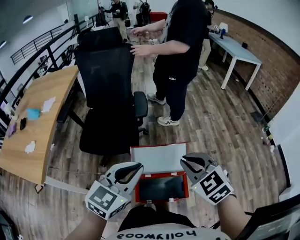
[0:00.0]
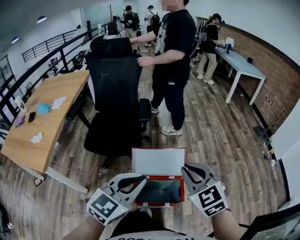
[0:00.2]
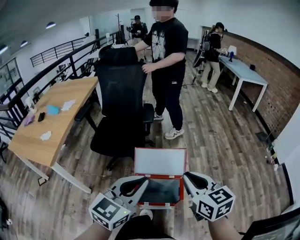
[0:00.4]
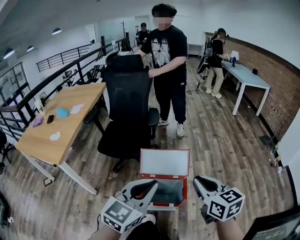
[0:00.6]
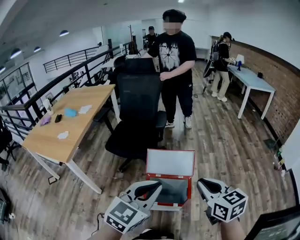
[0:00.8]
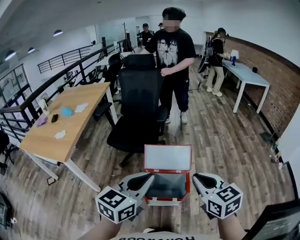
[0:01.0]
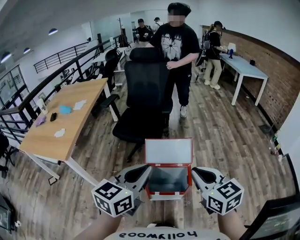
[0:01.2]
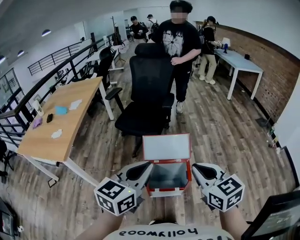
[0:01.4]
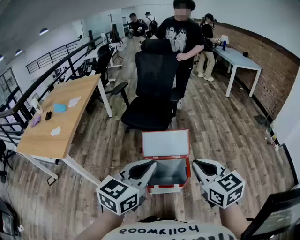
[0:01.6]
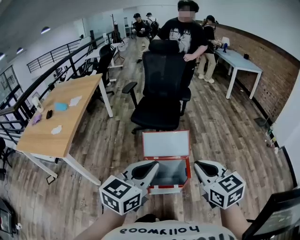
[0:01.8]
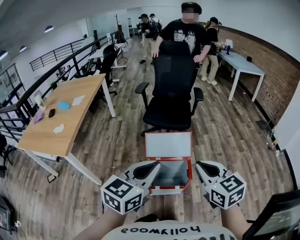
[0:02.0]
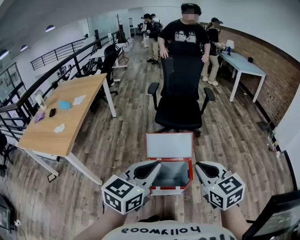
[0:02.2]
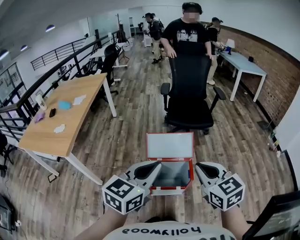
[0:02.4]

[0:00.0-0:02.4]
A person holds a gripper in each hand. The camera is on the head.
0:00.0 to 0:01.2: Both grippers travel together backward, about 20 cm. The right gripper changes its angle by some 30 degrees.
0:01.2 to 0:02.4: There are only small adjustments of the grippers.

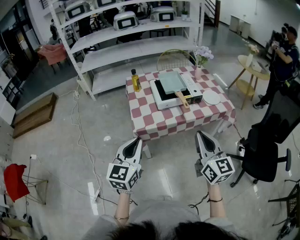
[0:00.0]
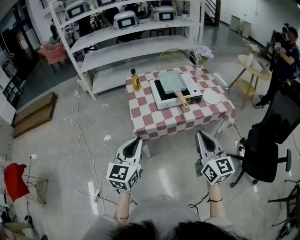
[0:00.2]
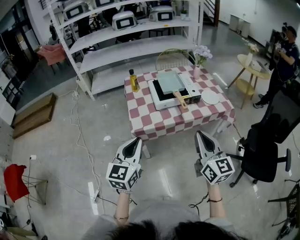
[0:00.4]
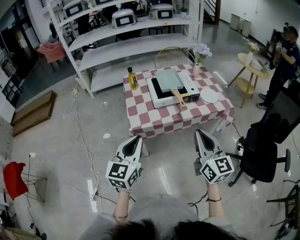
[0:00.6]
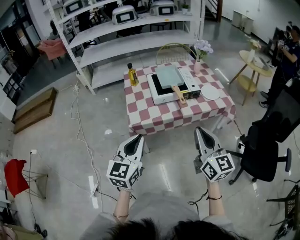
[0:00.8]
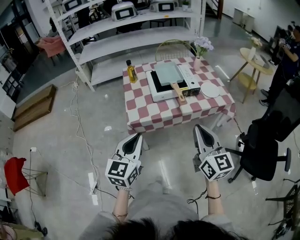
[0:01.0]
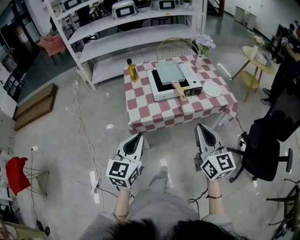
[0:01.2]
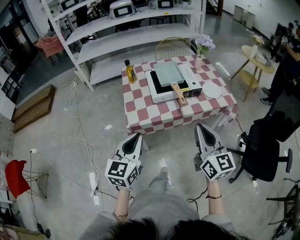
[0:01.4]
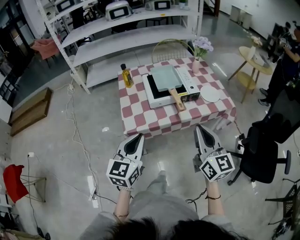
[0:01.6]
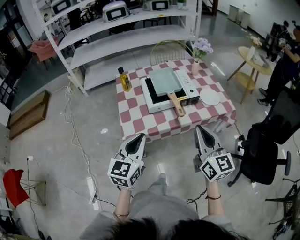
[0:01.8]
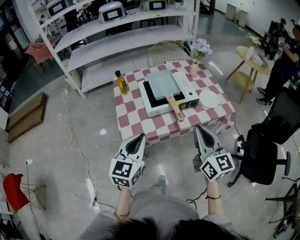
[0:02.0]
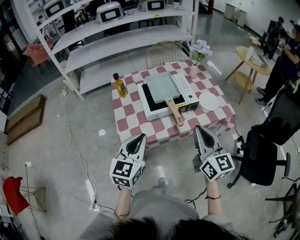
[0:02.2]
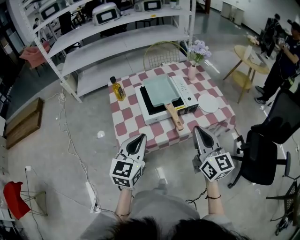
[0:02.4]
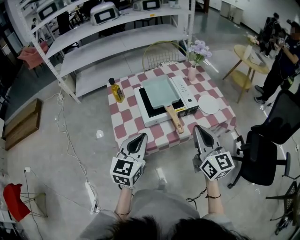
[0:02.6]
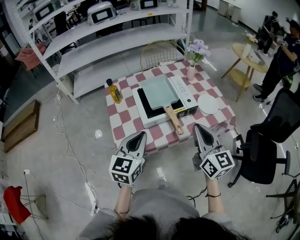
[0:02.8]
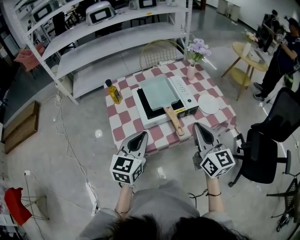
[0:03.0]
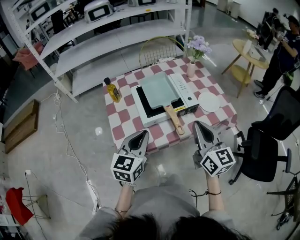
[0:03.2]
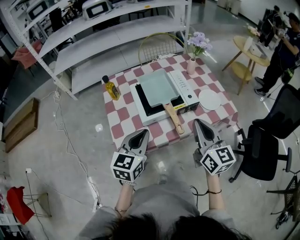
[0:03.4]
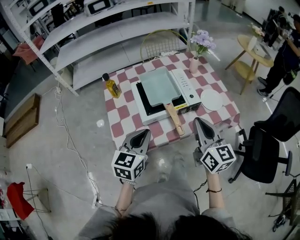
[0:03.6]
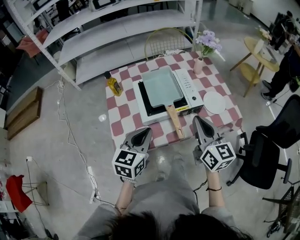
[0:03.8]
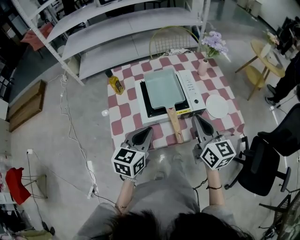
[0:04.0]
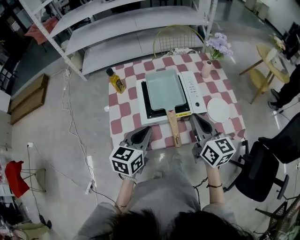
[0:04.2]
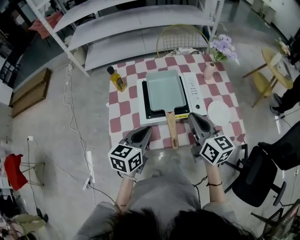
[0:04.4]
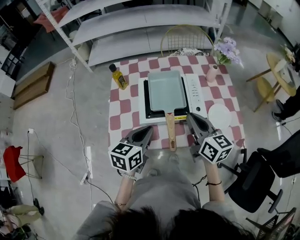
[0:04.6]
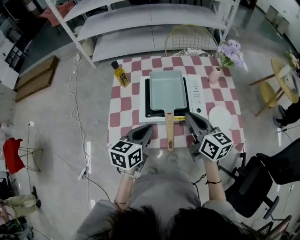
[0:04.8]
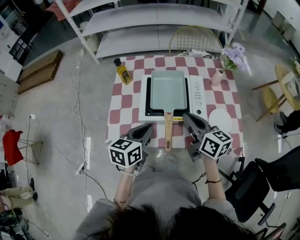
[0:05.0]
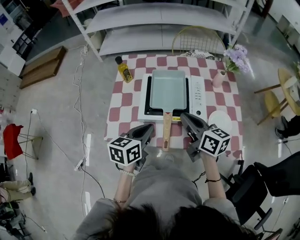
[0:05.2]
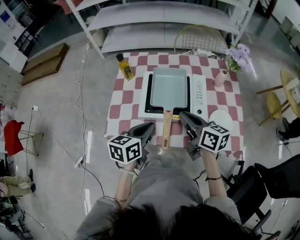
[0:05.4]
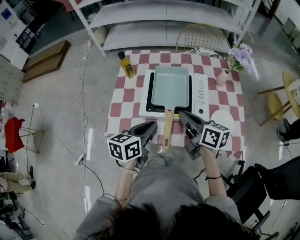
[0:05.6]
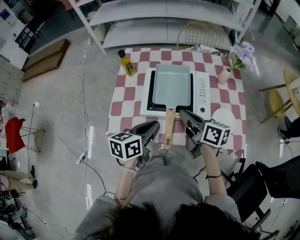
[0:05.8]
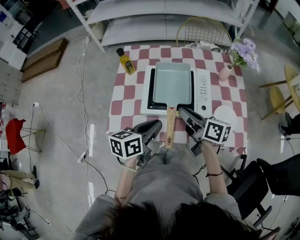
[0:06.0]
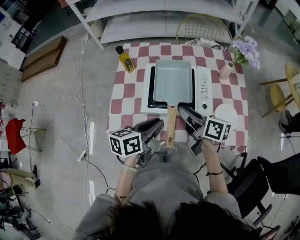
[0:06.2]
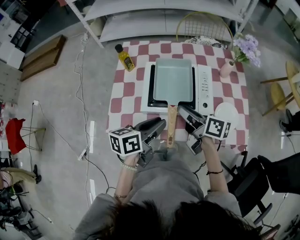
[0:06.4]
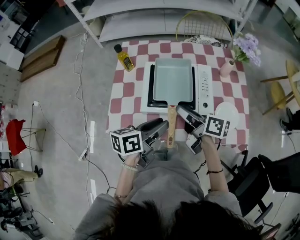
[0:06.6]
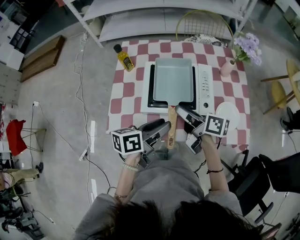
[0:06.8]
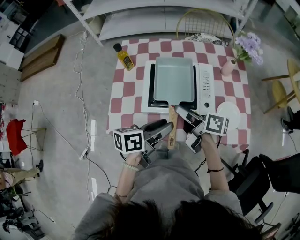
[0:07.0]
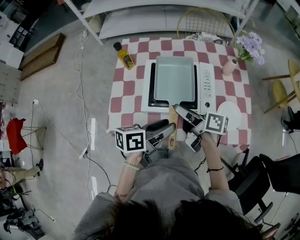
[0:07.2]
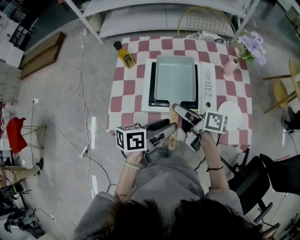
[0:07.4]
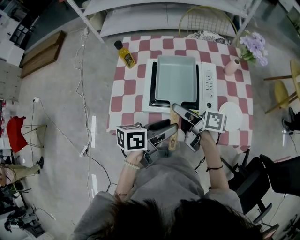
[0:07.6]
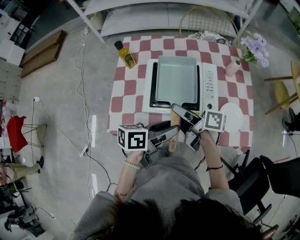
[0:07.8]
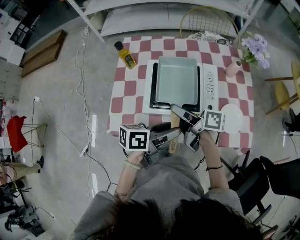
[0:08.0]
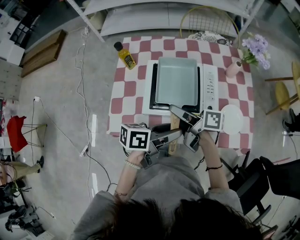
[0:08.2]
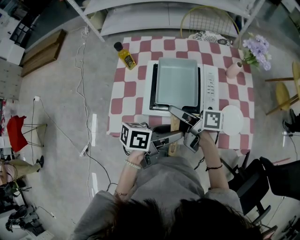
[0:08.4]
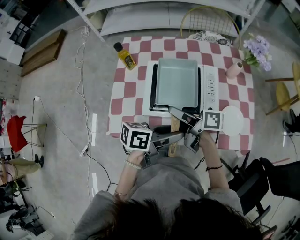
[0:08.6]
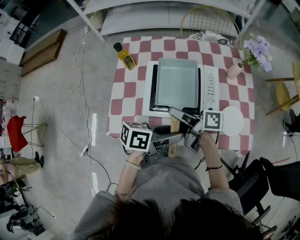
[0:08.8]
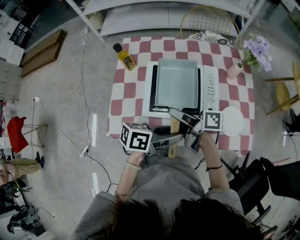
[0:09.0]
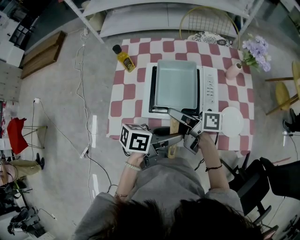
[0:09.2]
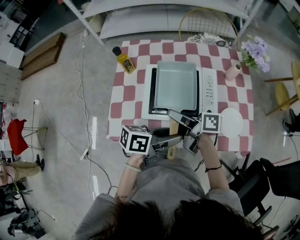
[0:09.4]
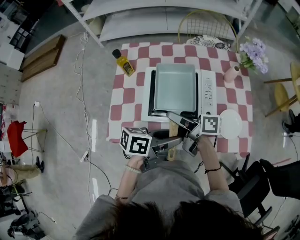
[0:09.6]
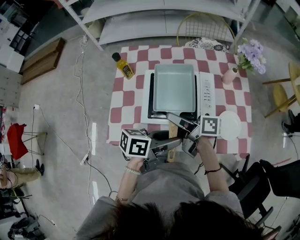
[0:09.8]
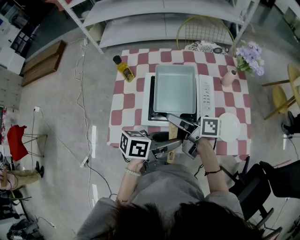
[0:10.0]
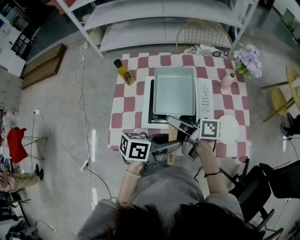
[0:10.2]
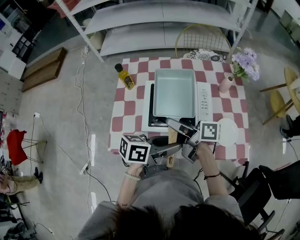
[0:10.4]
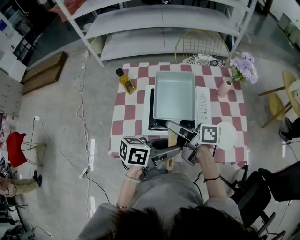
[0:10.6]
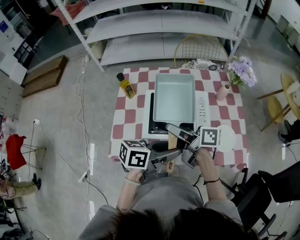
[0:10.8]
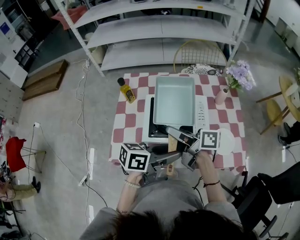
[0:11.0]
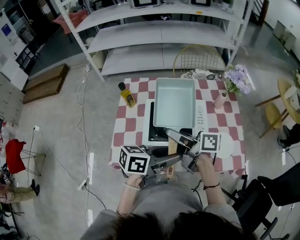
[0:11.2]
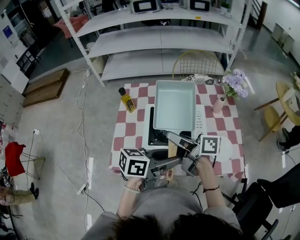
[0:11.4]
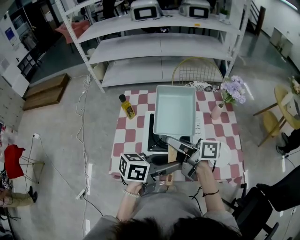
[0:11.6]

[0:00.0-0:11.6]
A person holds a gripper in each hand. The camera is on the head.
0:00.0 to 0:01.4: The left gripper ends up about 5 cm from where it was, while the right gripper ends up about 5 cm from where it was.
0:01.4 to 0:02.8: Both grippers move forward, about 20 cm.
0:02.8 to 0:04.4: The right gripper shifts roughly 15 cm forward, and turns by about 20 degrees; the left gripper moves forward and downward, about 10 cm, and changes its angle by roughly 20 degrees.
0:04.4 to 0:05.8: The right gripper heads downward, covering approximately 5 cm, and changes its angle by roughly 40 degrees.
0:05.8 to 0:07.2: The right gripper swivels approximately 20 degrees, and opens up. The left gripper swivels about 20 degrees, and opens up.
0:07.2 to 0:10.2: The grippers stay close to where they were, moving slightly.
0:10.2 to 0:11.6: The two grippers go some 10 cm upward.

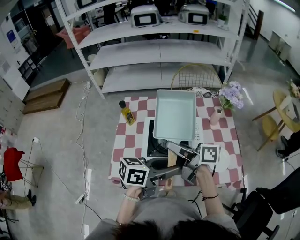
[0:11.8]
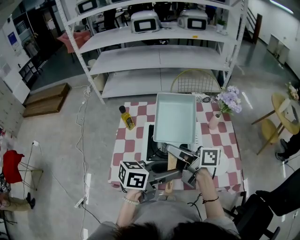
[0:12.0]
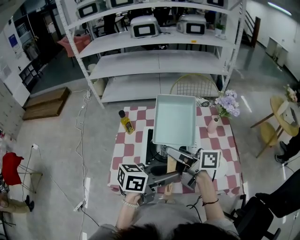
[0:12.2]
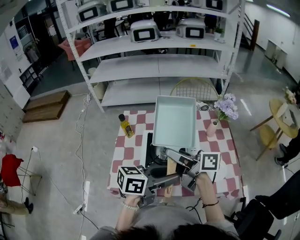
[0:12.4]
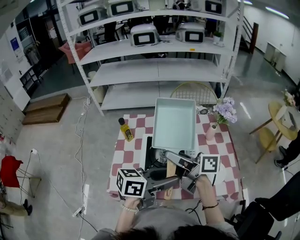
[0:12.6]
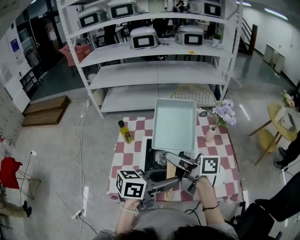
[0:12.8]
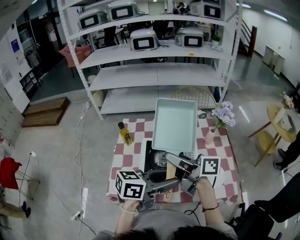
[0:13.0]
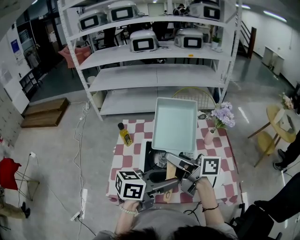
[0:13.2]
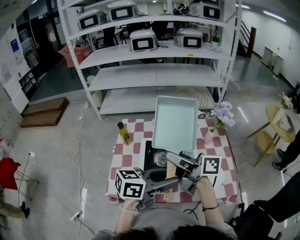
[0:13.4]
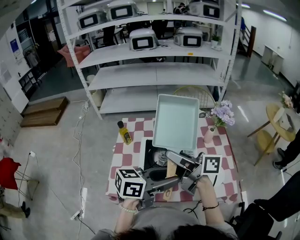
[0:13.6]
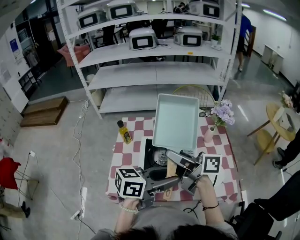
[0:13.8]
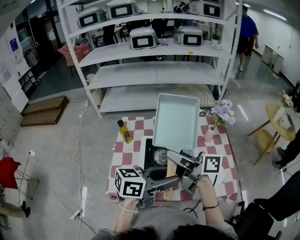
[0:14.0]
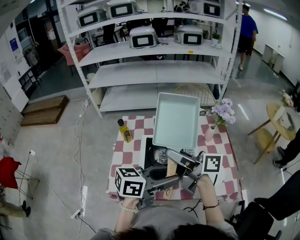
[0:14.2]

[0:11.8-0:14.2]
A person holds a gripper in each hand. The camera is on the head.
0:11.8 to 0:13.0: Both grippers travel together upward, some 5 cm.
0:13.0 to 0:14.2: Both grippers stay put.

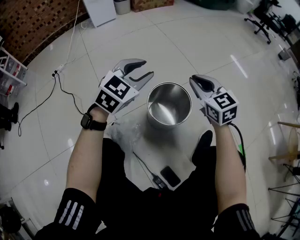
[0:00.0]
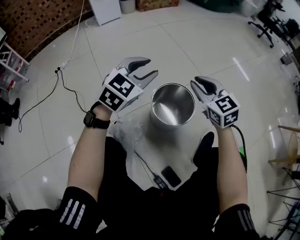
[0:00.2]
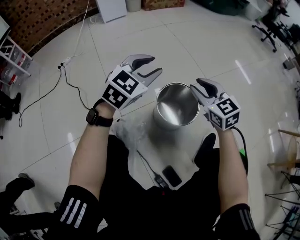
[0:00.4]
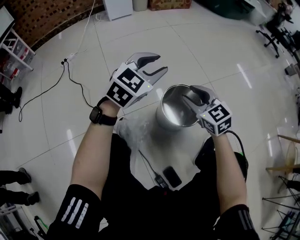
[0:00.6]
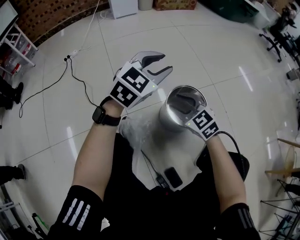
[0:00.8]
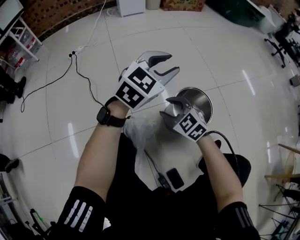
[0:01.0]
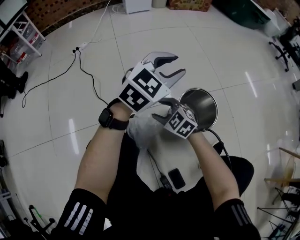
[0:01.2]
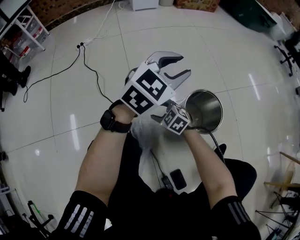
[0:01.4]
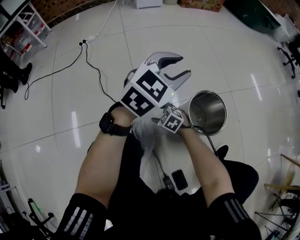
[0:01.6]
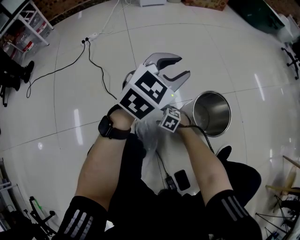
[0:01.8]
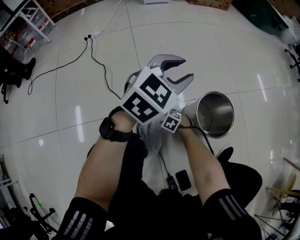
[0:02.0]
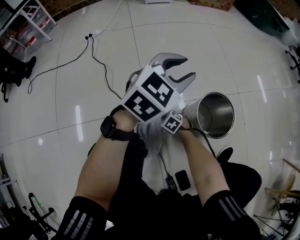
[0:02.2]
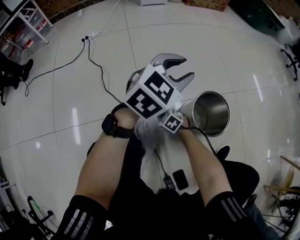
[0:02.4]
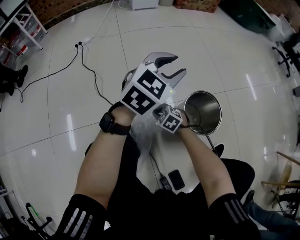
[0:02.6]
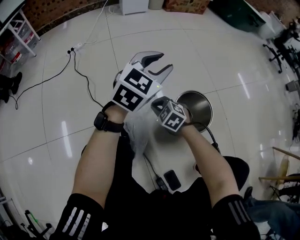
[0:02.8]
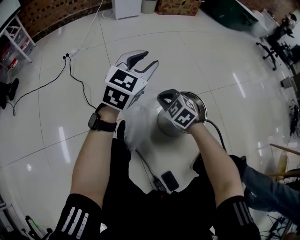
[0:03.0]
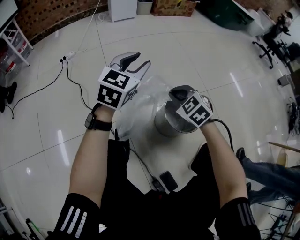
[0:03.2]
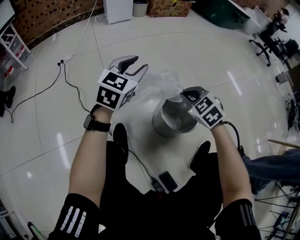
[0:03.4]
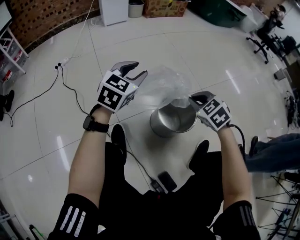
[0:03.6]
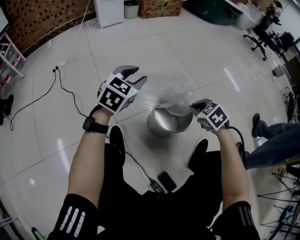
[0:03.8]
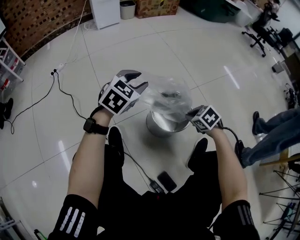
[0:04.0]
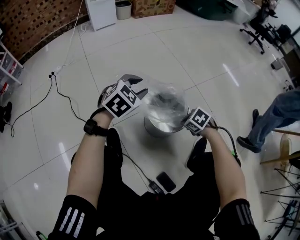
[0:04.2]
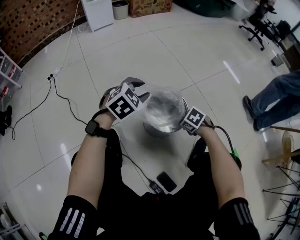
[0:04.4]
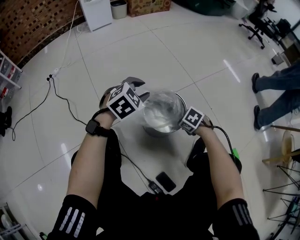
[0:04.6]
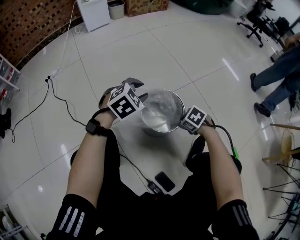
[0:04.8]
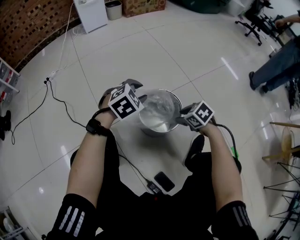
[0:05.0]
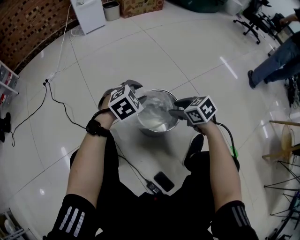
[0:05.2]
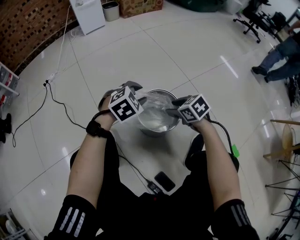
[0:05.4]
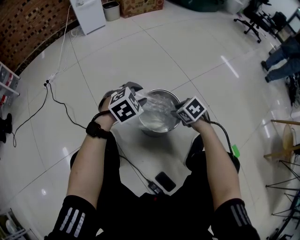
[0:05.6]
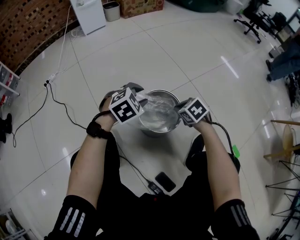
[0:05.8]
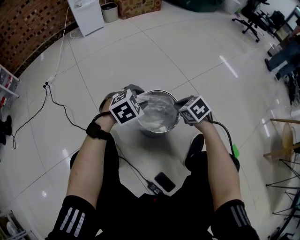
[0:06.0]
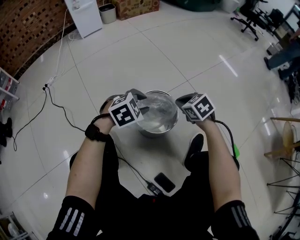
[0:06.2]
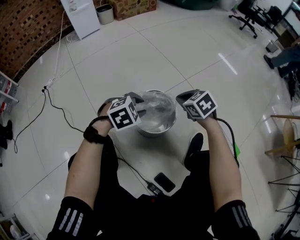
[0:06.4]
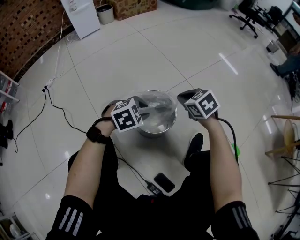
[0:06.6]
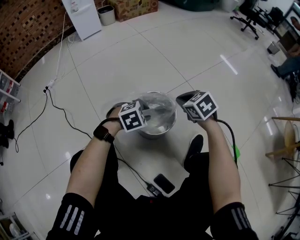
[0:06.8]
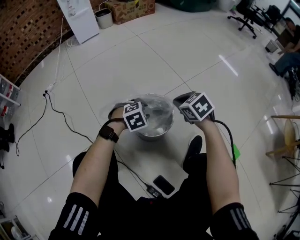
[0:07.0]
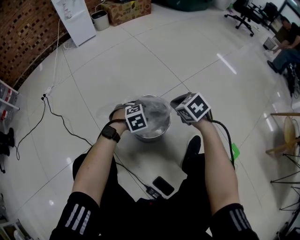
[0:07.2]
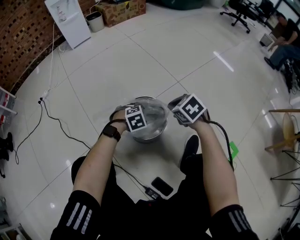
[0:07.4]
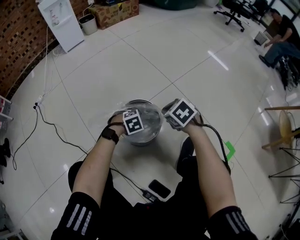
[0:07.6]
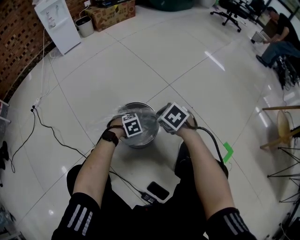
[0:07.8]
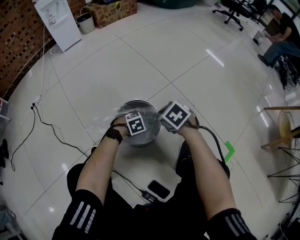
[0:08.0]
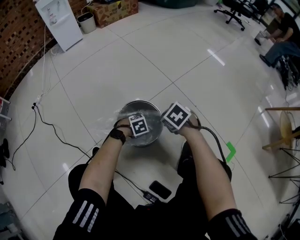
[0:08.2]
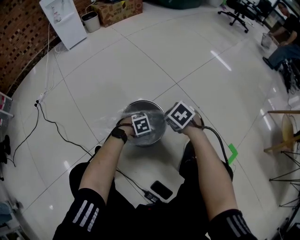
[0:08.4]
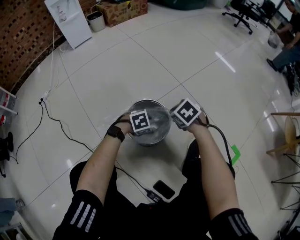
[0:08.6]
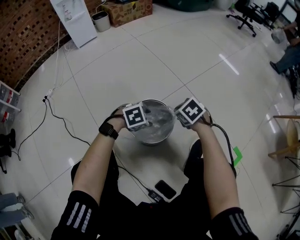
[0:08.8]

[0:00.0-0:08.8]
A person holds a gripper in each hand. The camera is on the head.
0:00.0 to 0:01.4: The right gripper is displaced to the left and downward by approximately 40 cm, changes its angle by about 50 degrees, and opens its fingers, while the left gripper travels to the left by approximately 10 cm.
0:01.4 to 0:03.0: The left gripper ends up approximately 5 cm from where it was. The right gripper travels upward and to the right by approximately 15 cm, and closes.
0:03.0 to 0:04.4: The left gripper shifts by some 20 cm, and changes its angle by approximately 40 degrees. Meanwhile the right gripper ends up roughly 30 cm from where it was, and turns by roughly 40 degrees.
0:04.4 to 0:05.8: The left gripper shifts by some 5 cm. Meanwhile the right gripper shifts by about 10 cm, rotates approximately 20 degrees, and opens and closes again.
0:05.8 to 0:07.4: The left gripper travels downward and to the right by approximately 15 cm, and rotates roughly 20 degrees, while the right gripper moves upward, approximately 5 cm.
0:07.4 to 0:08.8: The left gripper moves roughly 10 cm downward and comes back.
